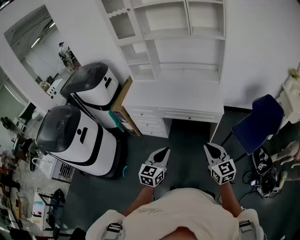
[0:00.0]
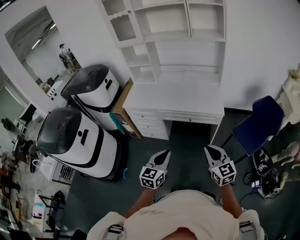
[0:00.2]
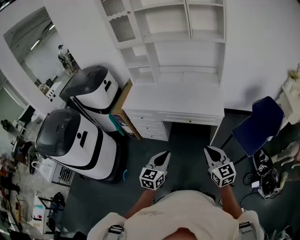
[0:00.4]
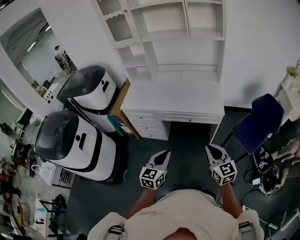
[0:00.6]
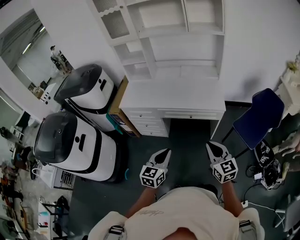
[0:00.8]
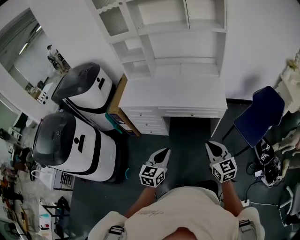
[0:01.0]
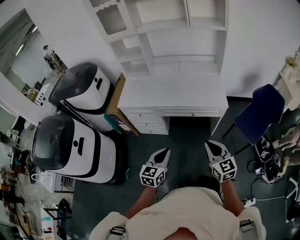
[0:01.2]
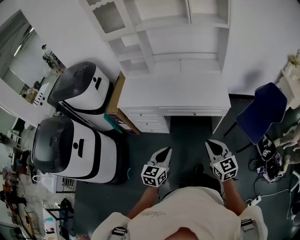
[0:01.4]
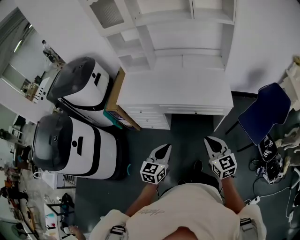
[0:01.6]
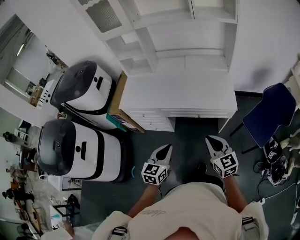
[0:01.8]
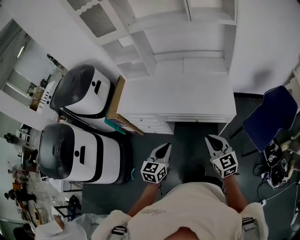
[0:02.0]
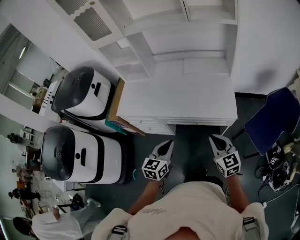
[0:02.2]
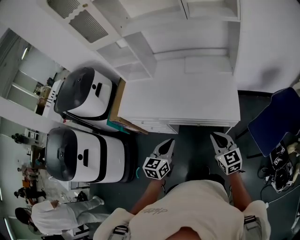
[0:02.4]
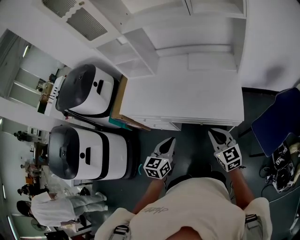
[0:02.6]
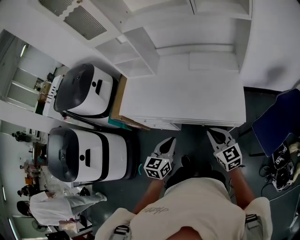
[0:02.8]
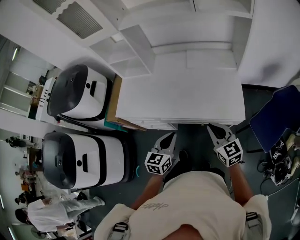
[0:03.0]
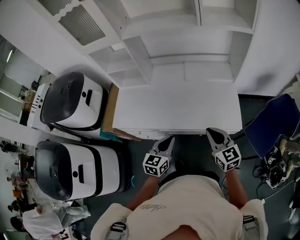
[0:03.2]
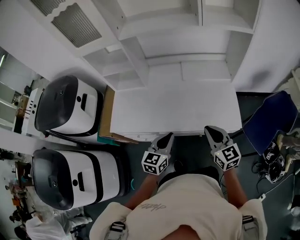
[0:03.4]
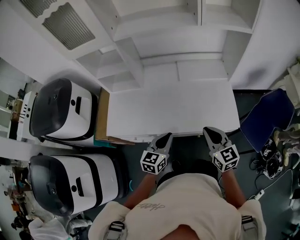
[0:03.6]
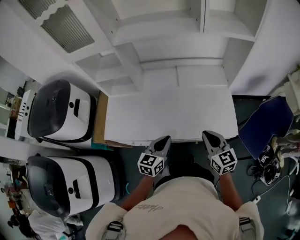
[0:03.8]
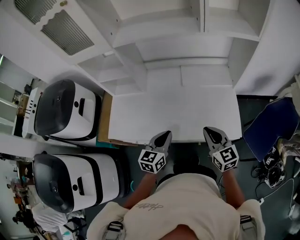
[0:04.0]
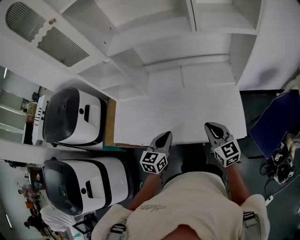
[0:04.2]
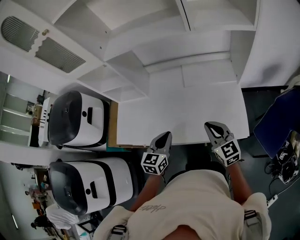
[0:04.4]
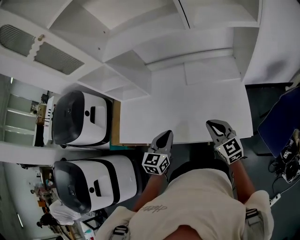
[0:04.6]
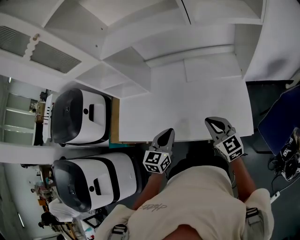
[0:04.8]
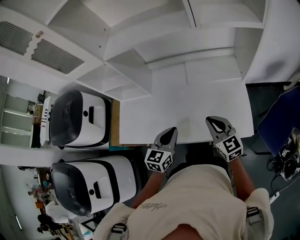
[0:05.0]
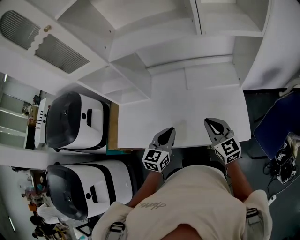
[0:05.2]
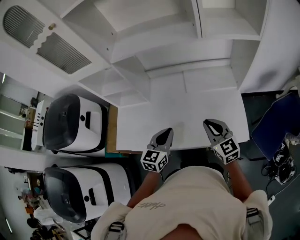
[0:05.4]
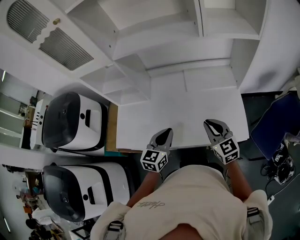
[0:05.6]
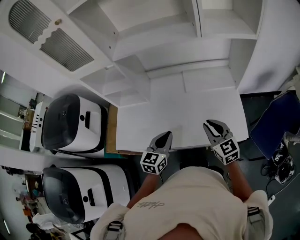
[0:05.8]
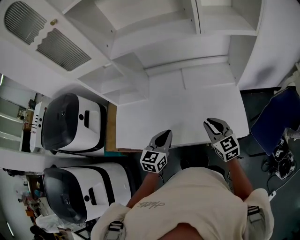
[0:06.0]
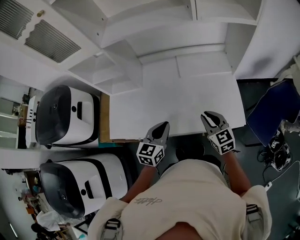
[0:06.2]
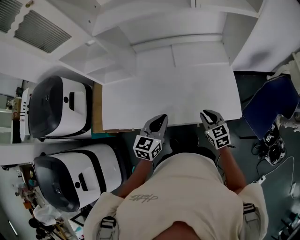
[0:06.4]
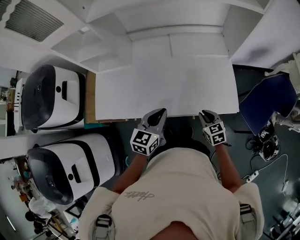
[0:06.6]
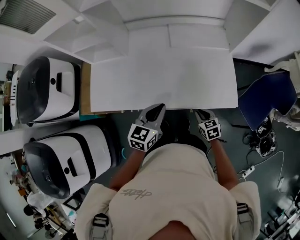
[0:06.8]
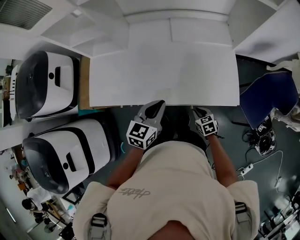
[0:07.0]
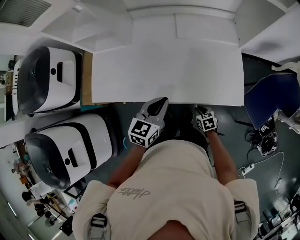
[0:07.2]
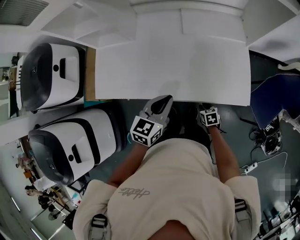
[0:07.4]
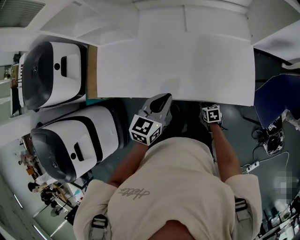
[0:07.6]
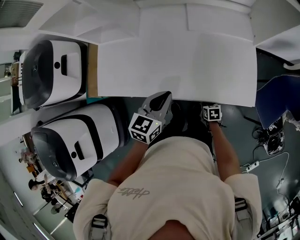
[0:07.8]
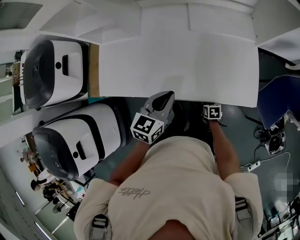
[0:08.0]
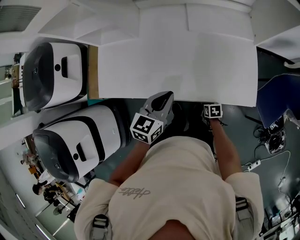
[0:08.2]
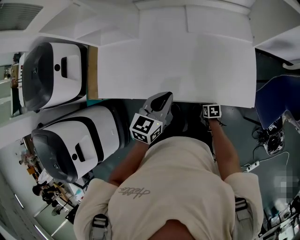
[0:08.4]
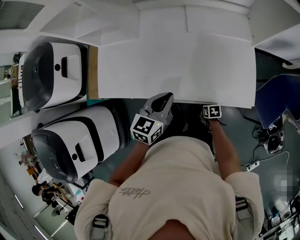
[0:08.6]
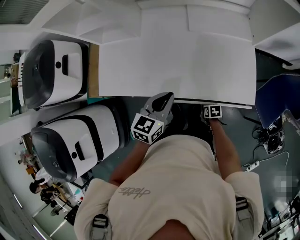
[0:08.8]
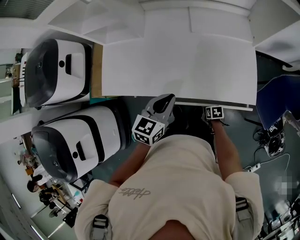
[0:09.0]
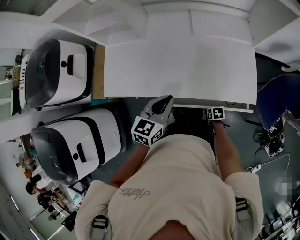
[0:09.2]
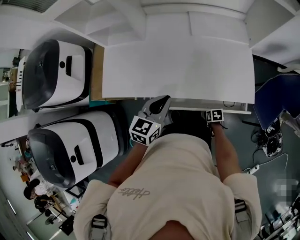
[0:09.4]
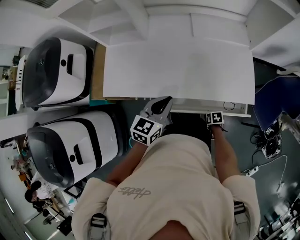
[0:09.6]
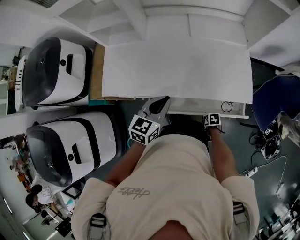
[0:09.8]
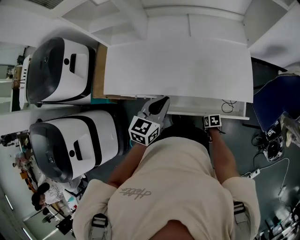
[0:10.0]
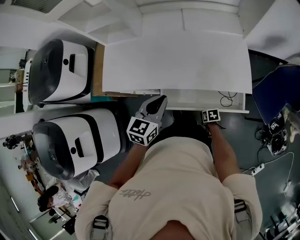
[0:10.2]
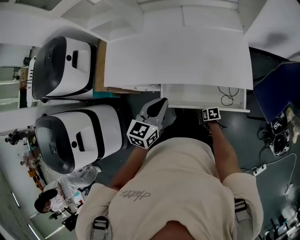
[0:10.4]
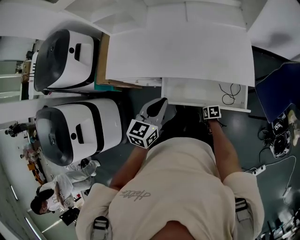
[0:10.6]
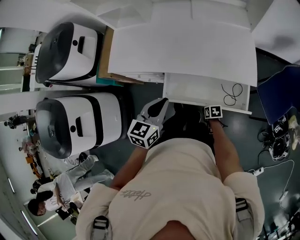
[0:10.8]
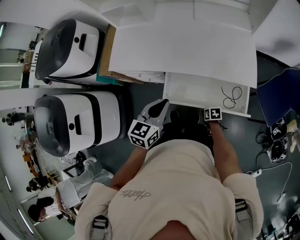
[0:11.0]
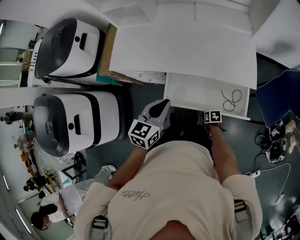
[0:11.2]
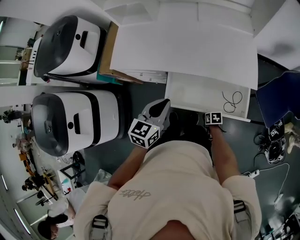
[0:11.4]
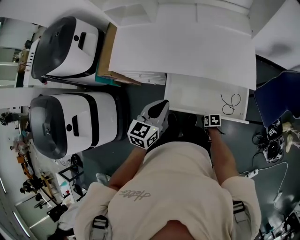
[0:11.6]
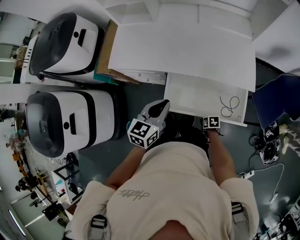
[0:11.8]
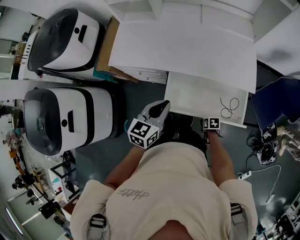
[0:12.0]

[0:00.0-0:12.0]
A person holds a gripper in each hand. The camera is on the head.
0:00.0 to 0:01.6: Both grippers travel together forward and to the left, some 15 cm.
0:01.6 to 0:03.0: The two grippers go about 25 cm forward.
0:03.0 to 0:04.4: Both grippers travel together forward, roughly 15 cm.
0:04.4 to 0:06.0: The grippers make only small movements.
0:06.0 to 0:07.6: The right gripper moves downward, approximately 40 cm, and tips its fingers downward by roughly 50 degrees, while the left gripper is displaced downward by some 5 cm.
0:07.6 to 0:09.0: The grippers stay close to where they were, moving slightly.
0:09.0 to 0:10.4: Both grippers move backward, roughly 10 cm.
0:10.4 to 0:12.0: The right gripper moves backward, roughly 10 cm. Meanwhile the left gripper shifts about 10 cm to the left and backward.

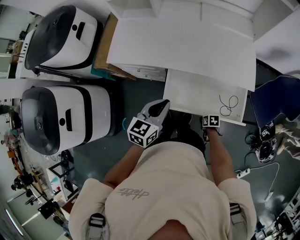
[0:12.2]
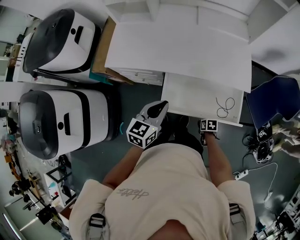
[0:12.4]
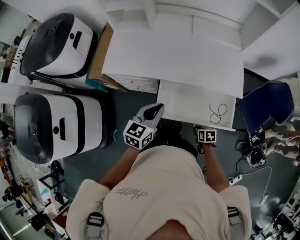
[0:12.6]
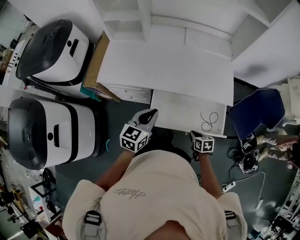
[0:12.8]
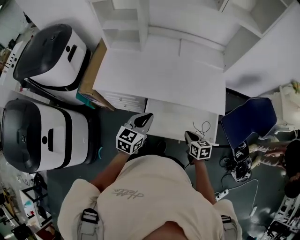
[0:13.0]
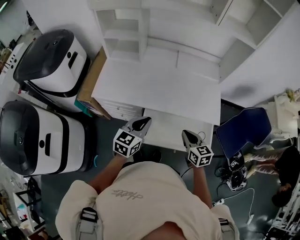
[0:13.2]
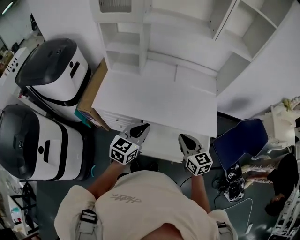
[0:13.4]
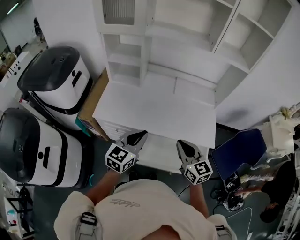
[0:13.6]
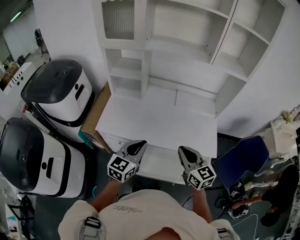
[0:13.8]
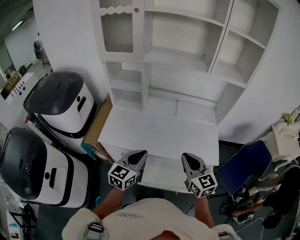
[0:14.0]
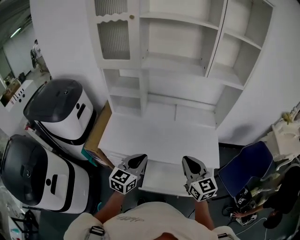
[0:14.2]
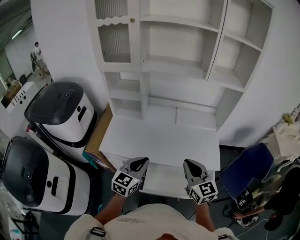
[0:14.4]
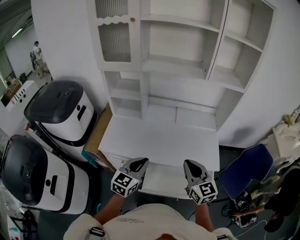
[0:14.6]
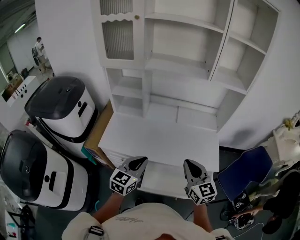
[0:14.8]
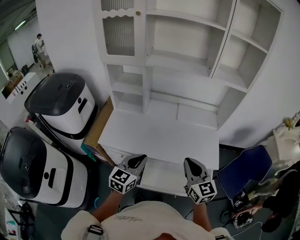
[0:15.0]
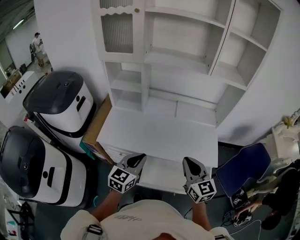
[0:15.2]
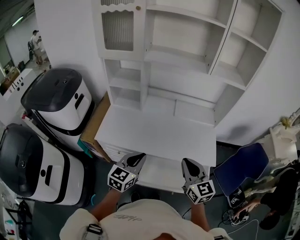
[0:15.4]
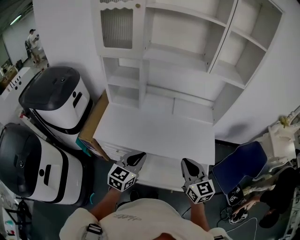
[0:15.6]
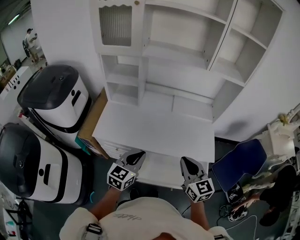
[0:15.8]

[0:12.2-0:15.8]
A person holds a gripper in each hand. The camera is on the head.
0:12.2 to 0:14.0: The left gripper travels upward and forward by roughly 15 cm. The right gripper shifts approximately 50 cm upward, and tips its fingers upward by some 60 degrees.
0:14.0 to 0:15.8: The grippers move only a little.

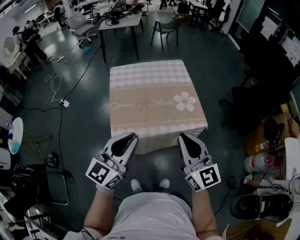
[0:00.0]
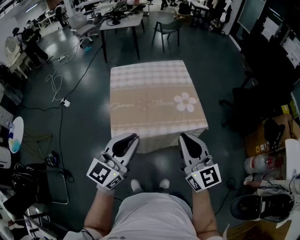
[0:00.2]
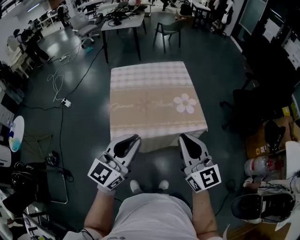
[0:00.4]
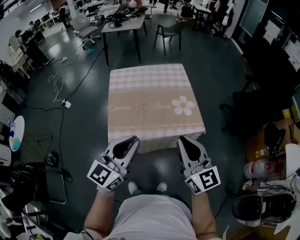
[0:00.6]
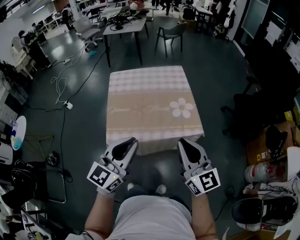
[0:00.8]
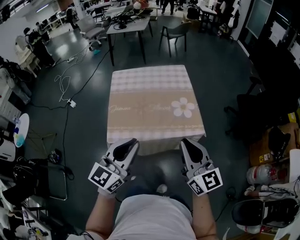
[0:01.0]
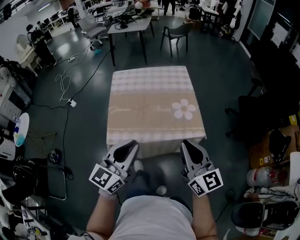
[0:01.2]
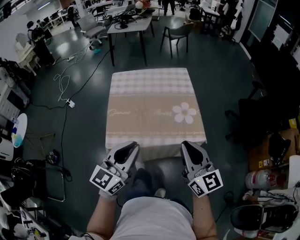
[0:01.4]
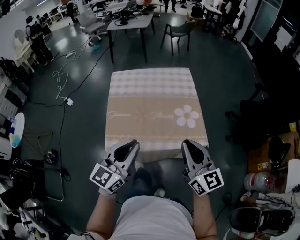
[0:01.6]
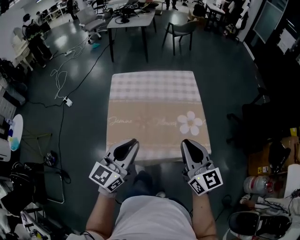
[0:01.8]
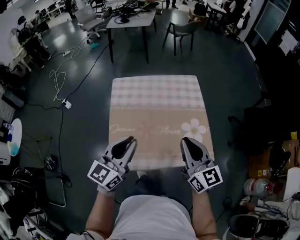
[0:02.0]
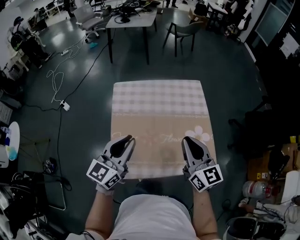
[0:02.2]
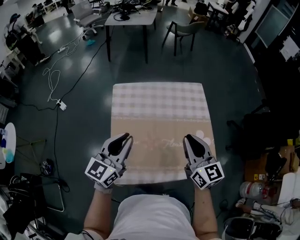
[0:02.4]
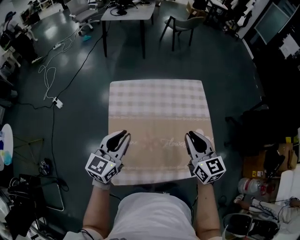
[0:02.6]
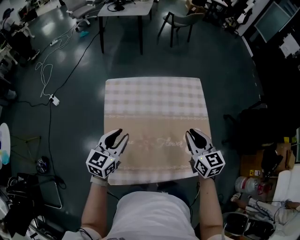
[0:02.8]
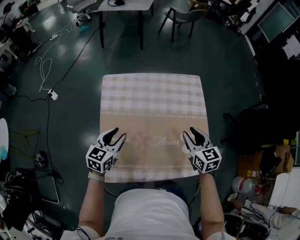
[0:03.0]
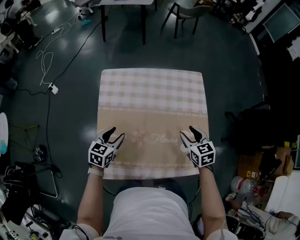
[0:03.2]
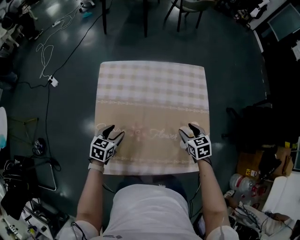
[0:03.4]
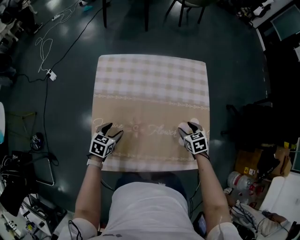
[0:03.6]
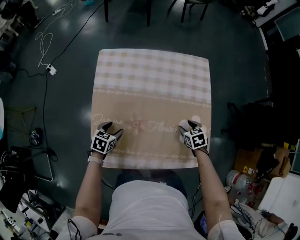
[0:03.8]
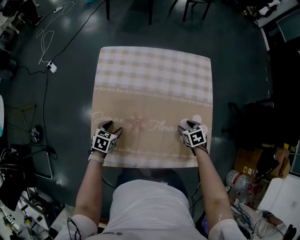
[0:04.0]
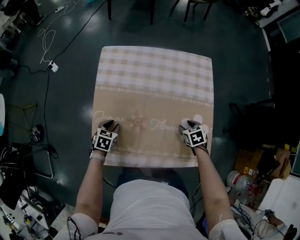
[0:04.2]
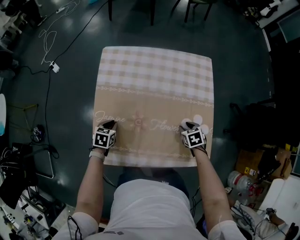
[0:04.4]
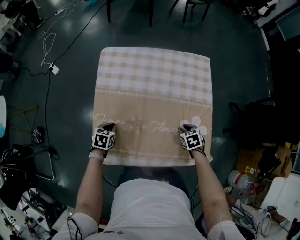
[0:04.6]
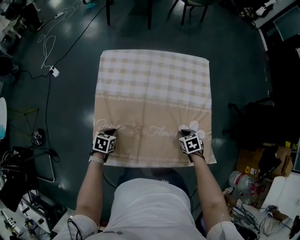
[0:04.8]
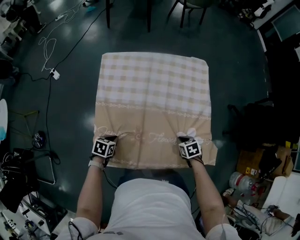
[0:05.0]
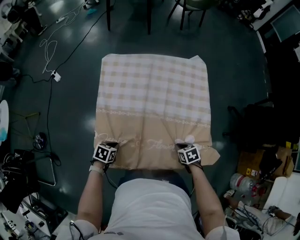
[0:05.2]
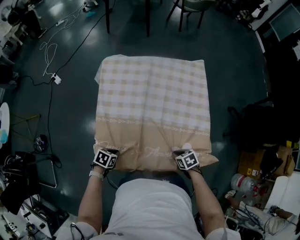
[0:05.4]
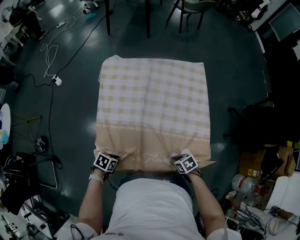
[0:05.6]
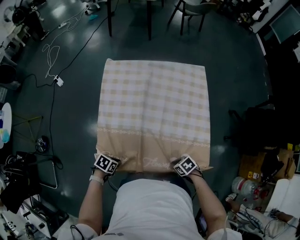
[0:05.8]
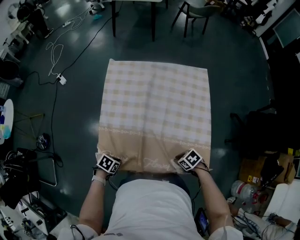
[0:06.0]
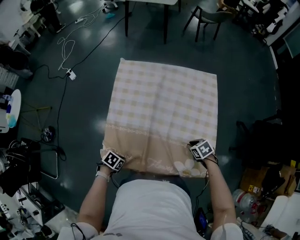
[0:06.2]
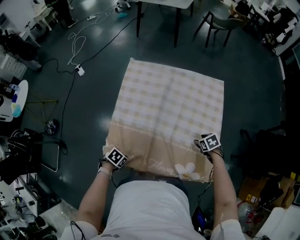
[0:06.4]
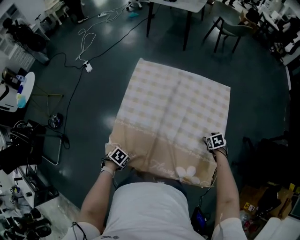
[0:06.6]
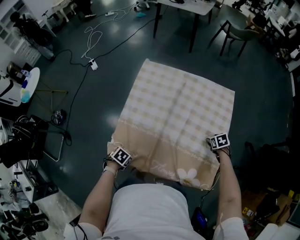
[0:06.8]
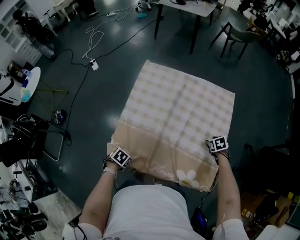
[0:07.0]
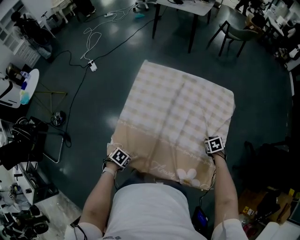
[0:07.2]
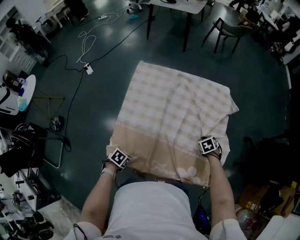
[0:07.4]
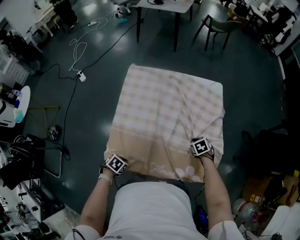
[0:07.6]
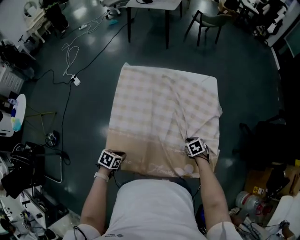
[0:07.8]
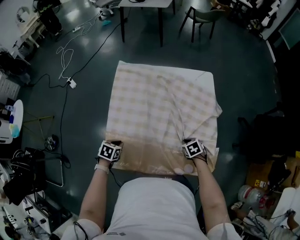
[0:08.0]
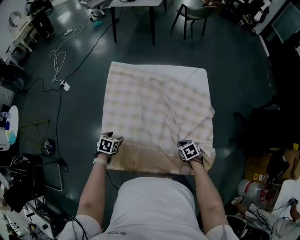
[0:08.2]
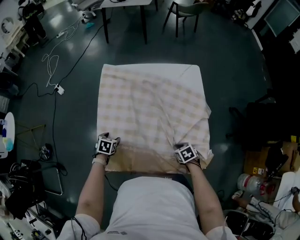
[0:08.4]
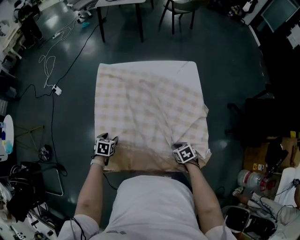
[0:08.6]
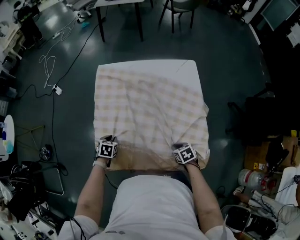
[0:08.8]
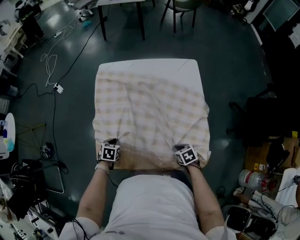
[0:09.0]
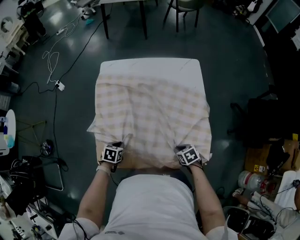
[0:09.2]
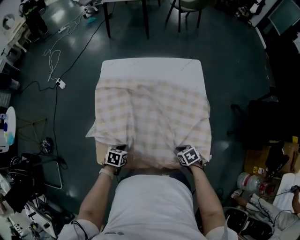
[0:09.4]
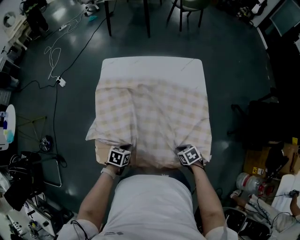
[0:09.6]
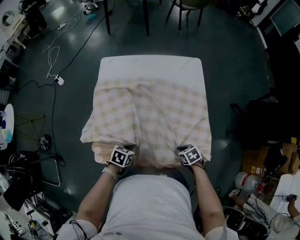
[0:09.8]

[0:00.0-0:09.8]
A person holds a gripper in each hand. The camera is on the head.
0:00.0 to 0:01.4: The right gripper goes roughly 10 cm to the right and forward. The left gripper heads to the right, covering some 5 cm.
0:01.4 to 0:02.8: The left gripper goes about 40 cm forward, to the left and downward, and swivels about 20 degrees; the right gripper goes approximately 35 cm forward, and swivels about 30 degrees.
0:02.8 to 0:04.2: The grippers both shift downward by approximately 25 cm. The right gripper tips its fingers downward by approximately 50 degrees, and opens up, while the left gripper tilts its fingers approximately 40 degrees downward, and opens, then closes once more.
0:04.2 to 0:05.6: The right gripper shifts by roughly 20 cm, swivels roughly 20 degrees, and closes its fingers. The left gripper changes place by approximately 15 cm, changes its angle by roughly 30 degrees, and closes its fingers.
0:05.6 to 0:07.0: The right gripper moves some 30 cm, rotates about 20 degrees, and opens up.
0:07.0 to 0:08.4: The right gripper ends up about 20 cm from where it was, and closes. Meanwhile the left gripper changes place by approximately 15 cm, rotates roughly 20 degrees, and opens its fingers.
0:08.4 to 0:09.8: The left gripper shifts by some 20 cm, and closes; the right gripper shifts by about 5 cm.
